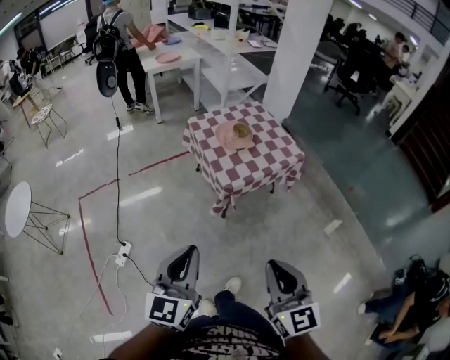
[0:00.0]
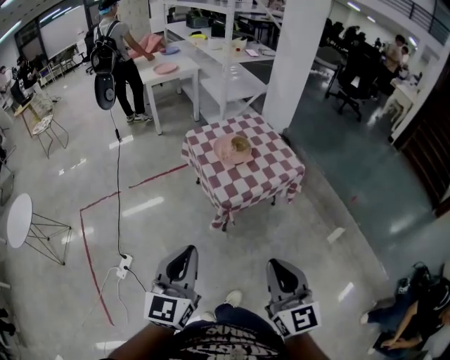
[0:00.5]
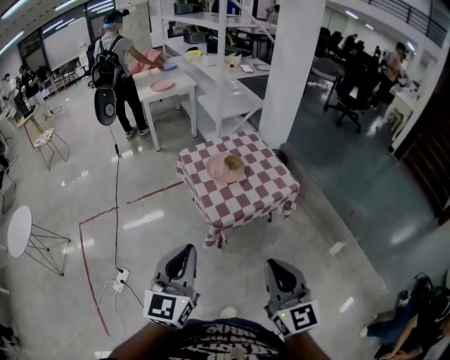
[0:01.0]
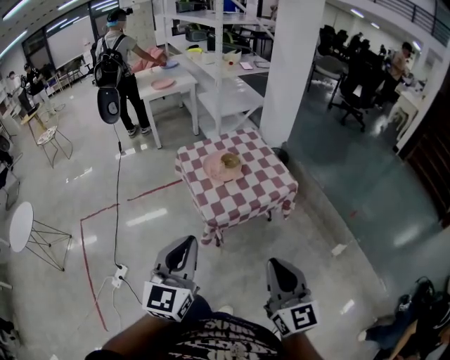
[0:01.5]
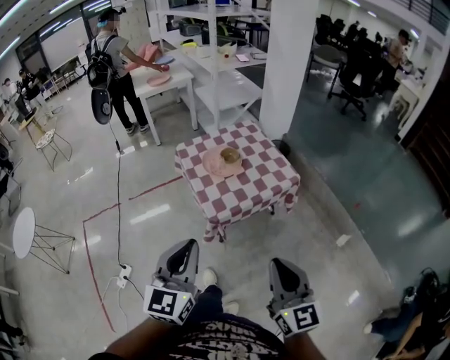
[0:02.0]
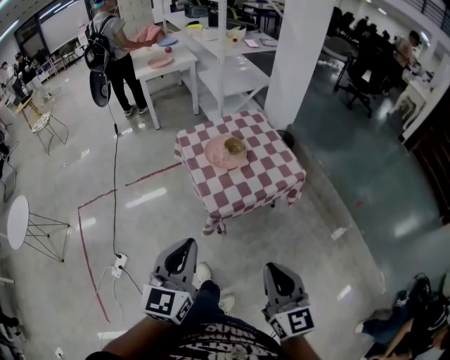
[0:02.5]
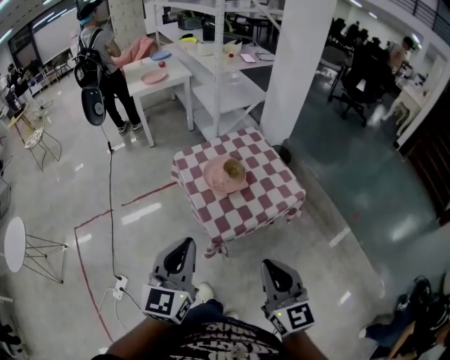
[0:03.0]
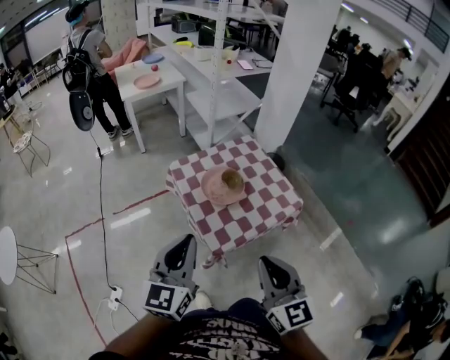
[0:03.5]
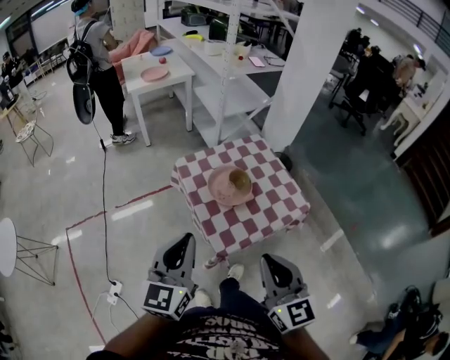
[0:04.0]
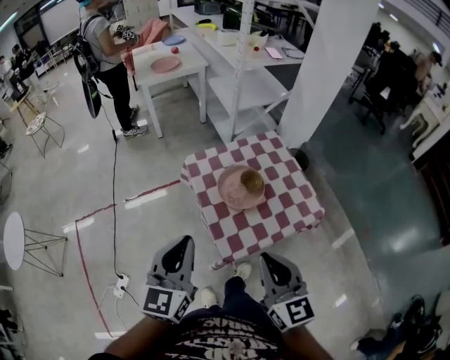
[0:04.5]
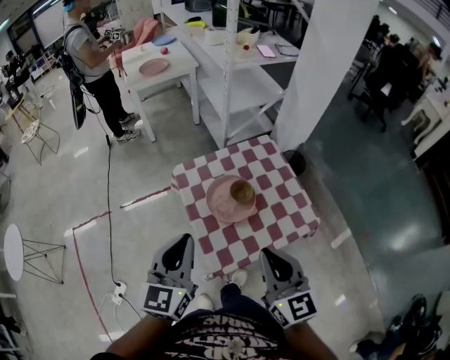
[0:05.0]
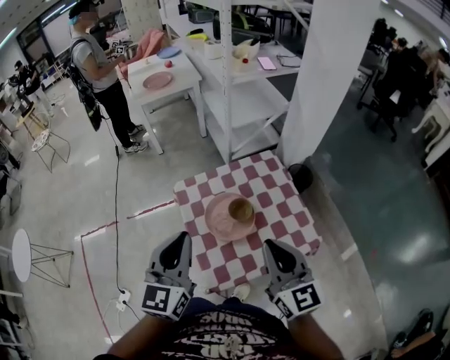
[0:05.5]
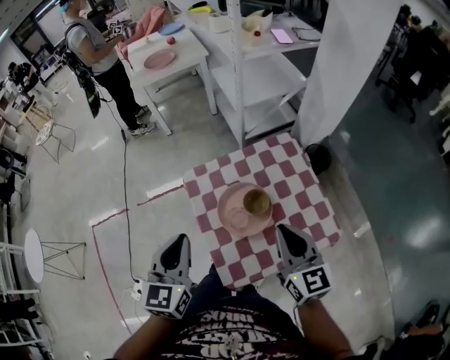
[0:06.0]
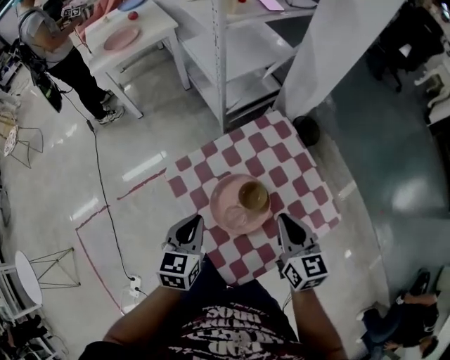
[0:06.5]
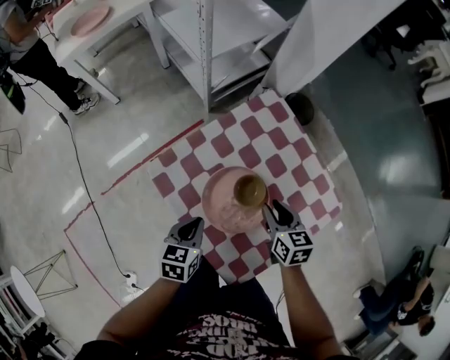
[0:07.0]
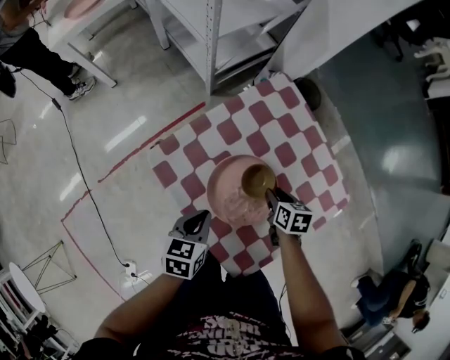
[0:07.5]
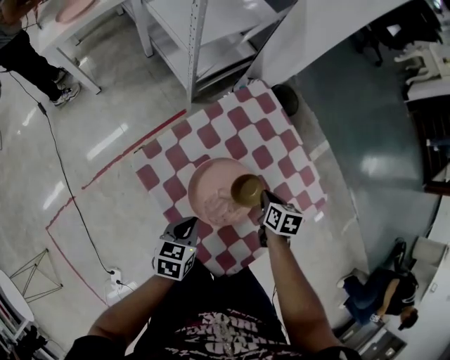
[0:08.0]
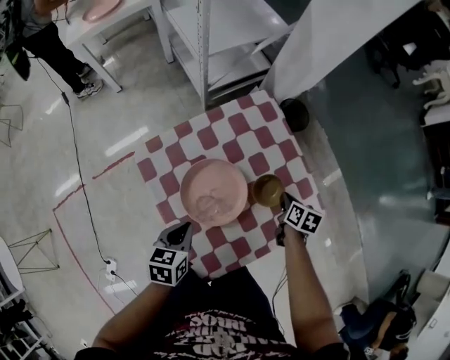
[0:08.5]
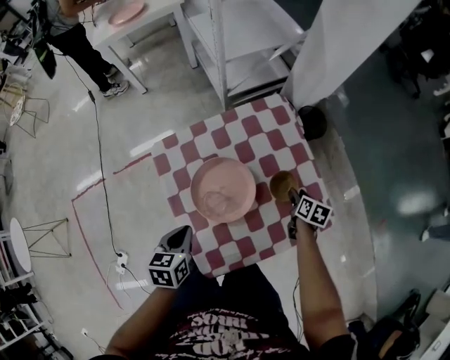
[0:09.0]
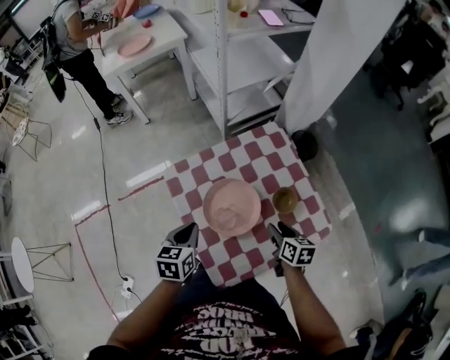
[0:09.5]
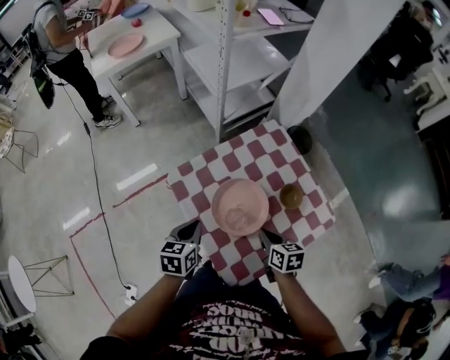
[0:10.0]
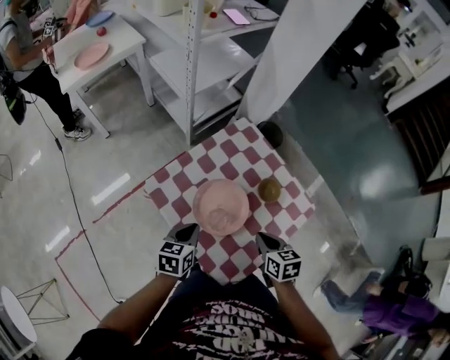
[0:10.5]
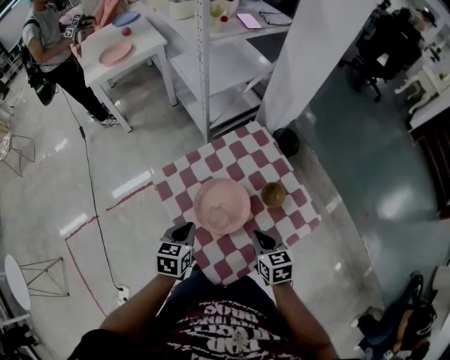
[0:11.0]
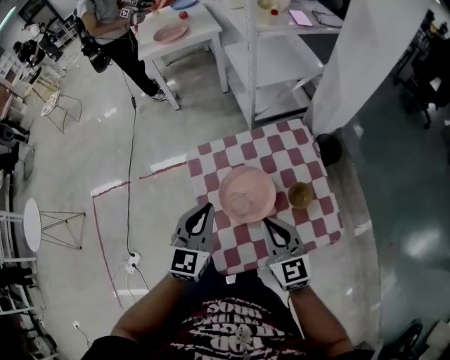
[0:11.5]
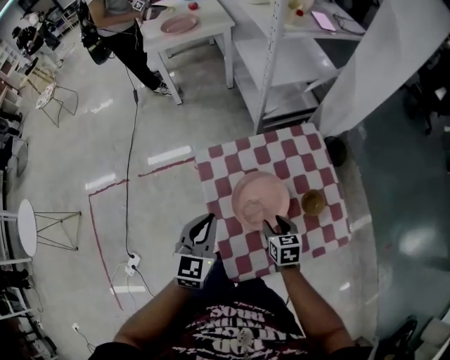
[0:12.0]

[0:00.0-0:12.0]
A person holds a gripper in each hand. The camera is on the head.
0:00.0 to 0:02.0: Both grippers travel together forward and to the right, about 20 cm.
0:02.0 to 0:04.0: The two grippers go about 25 cm forward and to the left.
0:04.0 to 0:06.0: The two grippers go about 25 cm forward. The left gripper rotates some 20 degrees.
0:06.0 to 0:08.0: Both grippers move downward, roughly 30 cm. The right gripper angles its fingers downward, by some 50 degrees, and opens and closes again, while the left gripper turns by roughly 50 degrees.
0:08.0 to 0:10.0: The left gripper heads upward, covering roughly 10 cm. Meanwhile the right gripper shifts by about 15 cm, rotates some 20 degrees, and opens, then closes again.
0:10.0 to 0:12.0: The left gripper moves upward, some 10 cm, and turns by roughly 30 degrees, while the right gripper reaches some 15 cm upward, then returns, changes its angle by approximately 20 degrees, and opens up.

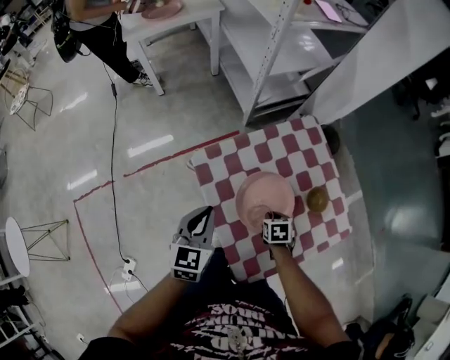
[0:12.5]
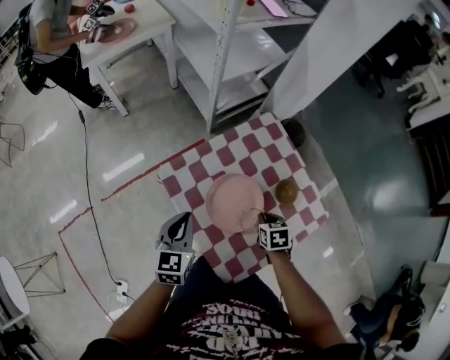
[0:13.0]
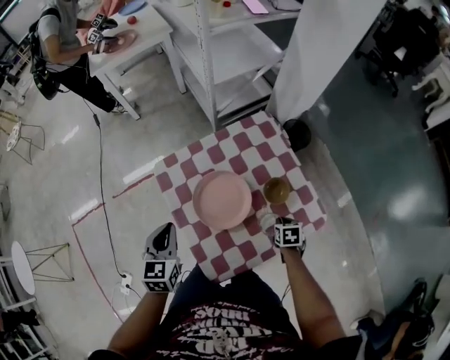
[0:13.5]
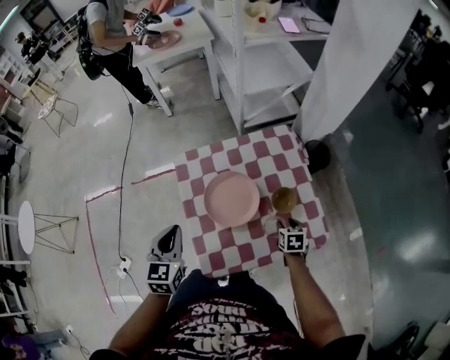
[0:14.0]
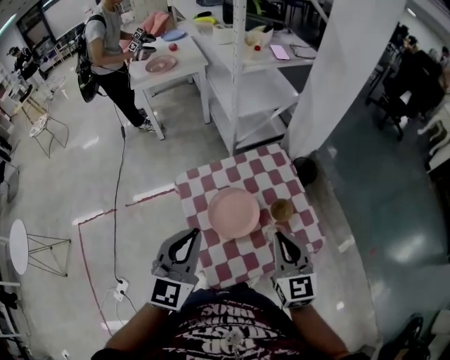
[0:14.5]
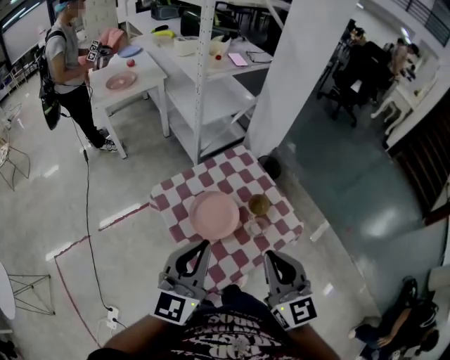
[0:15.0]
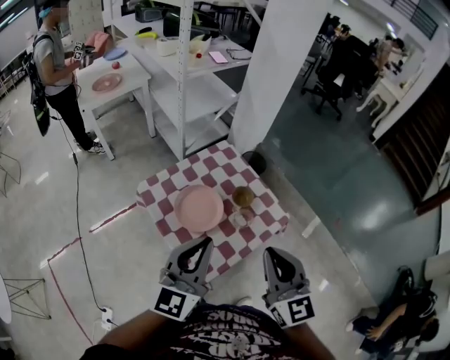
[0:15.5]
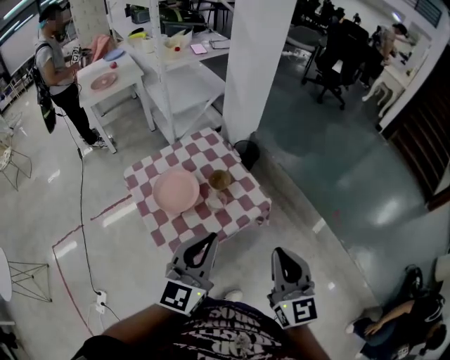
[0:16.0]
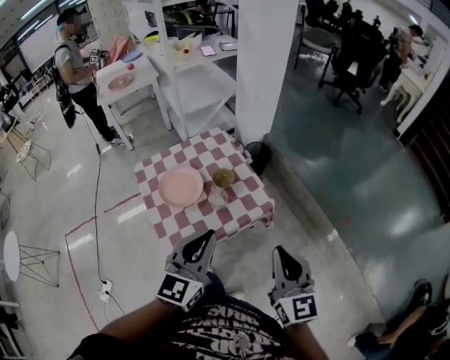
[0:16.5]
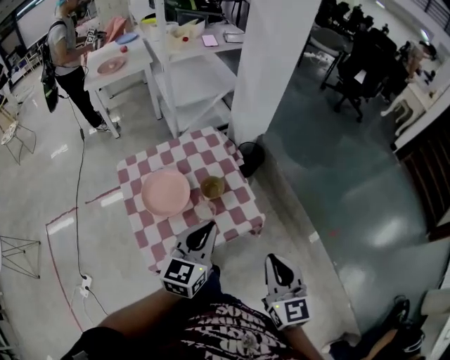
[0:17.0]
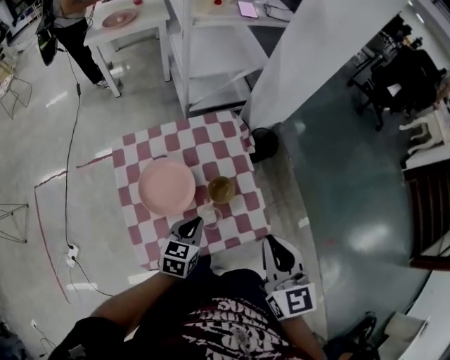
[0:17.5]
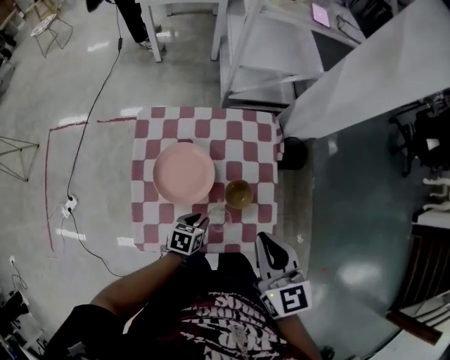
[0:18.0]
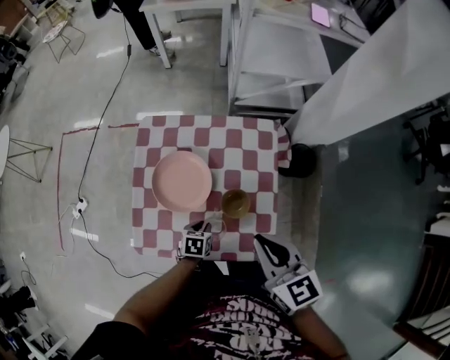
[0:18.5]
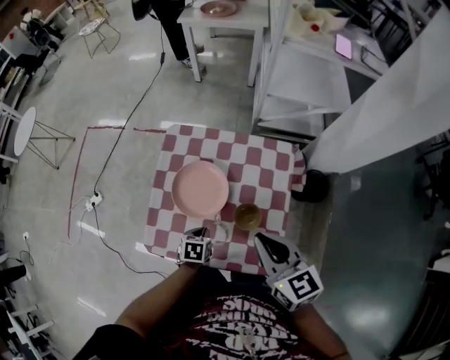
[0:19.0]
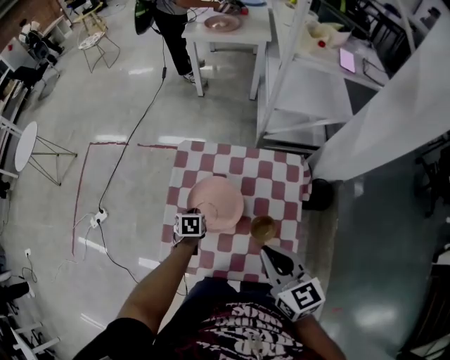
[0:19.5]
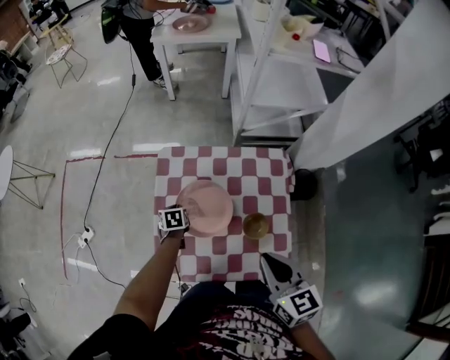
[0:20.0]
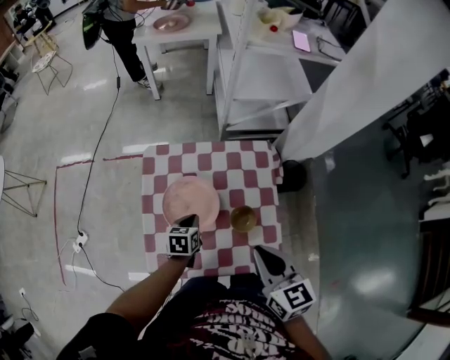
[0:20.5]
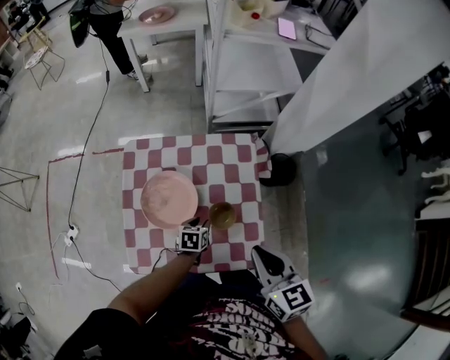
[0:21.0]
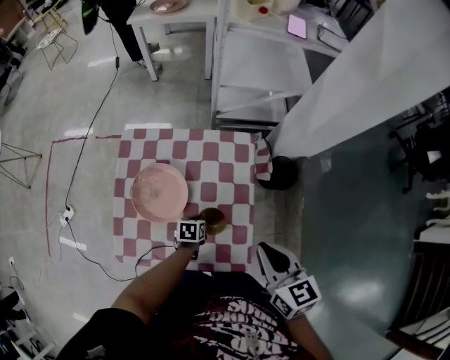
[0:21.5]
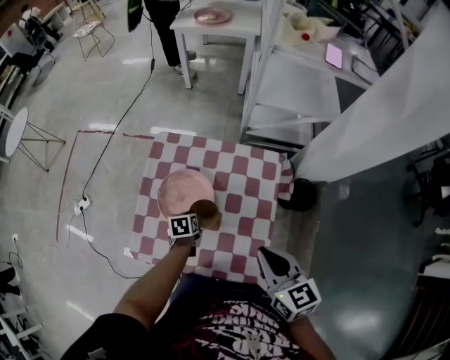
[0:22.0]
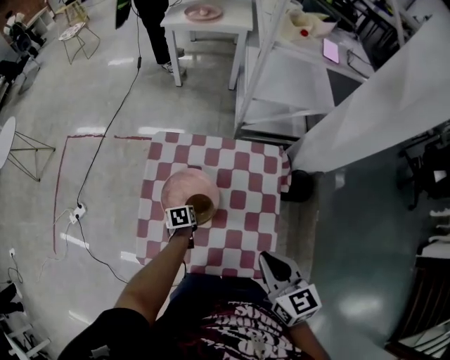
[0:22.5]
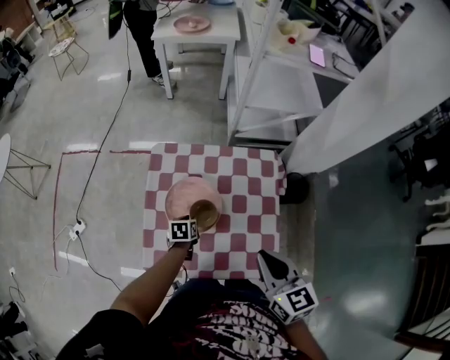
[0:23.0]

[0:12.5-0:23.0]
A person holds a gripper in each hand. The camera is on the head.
0:12.5 to 0:14.5: The right gripper goes up and down, some 40 cm each way, reversing 2 times, tips its fingers upward by approximately 60 degrees, and opens and closes again. The left gripper heads upward, backward and to the right, covering roughly 30 cm, and swivels some 20 degrees.
0:14.5 to 0:16.5: The grippers both shift to the right and backward by approximately 35 cm.
0:16.5 to 0:19.0: The right gripper shifts by about 40 cm, and swivels roughly 60 degrees. Meanwhile the left gripper goes about 40 cm downward, points its fingers about 60 degrees further downward, and opens and closes again.
0:19.0 to 0:21.0: The left gripper opens; the right gripper shifts by roughly 5 cm, and rotates roughly 20 degrees.
0:21.0 to 0:23.0: The right gripper goes approximately 5 cm to the left. Meanwhile the left gripper moves to the left, approximately 15 cm, and closes and opens again.

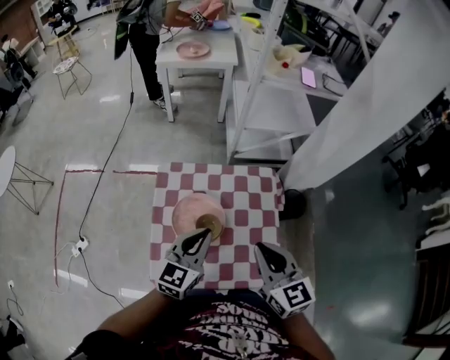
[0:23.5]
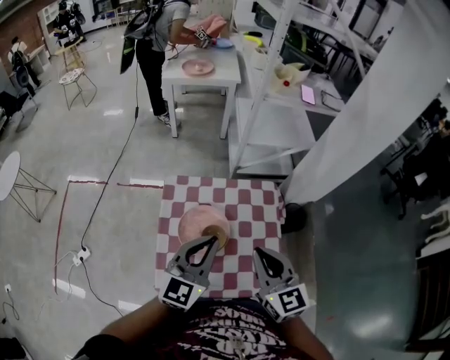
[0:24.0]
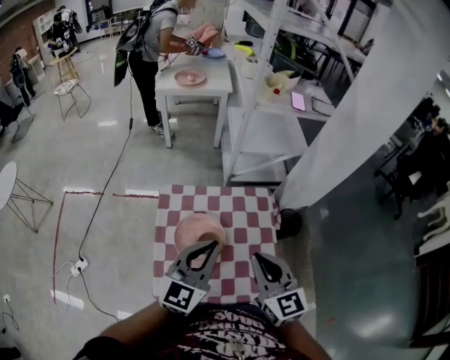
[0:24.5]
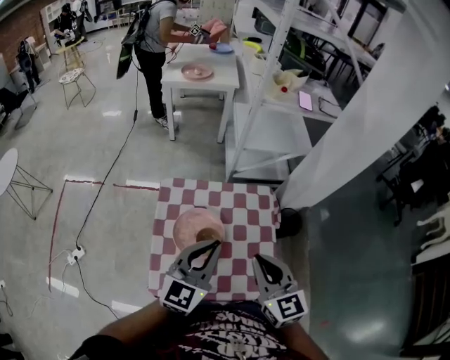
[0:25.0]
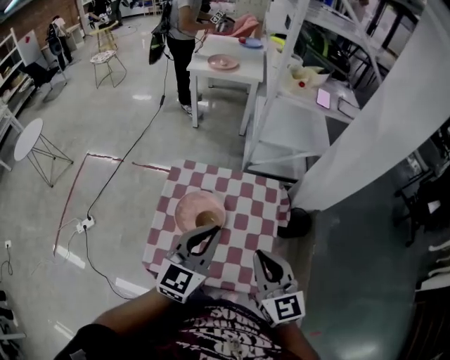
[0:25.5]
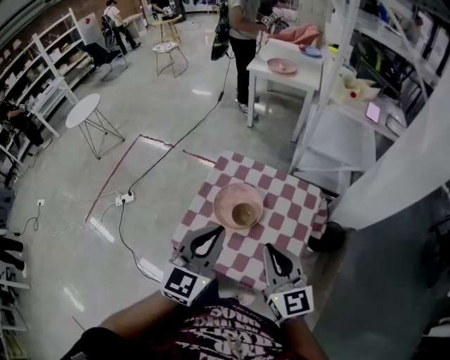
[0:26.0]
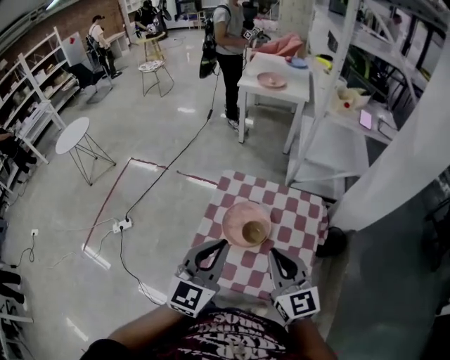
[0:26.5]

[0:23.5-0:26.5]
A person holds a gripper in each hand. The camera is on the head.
0:23.5 to 0:25.0: The left gripper travels upward by approximately 10 cm.
0:25.0 to 0:26.5: The left gripper shifts approximately 10 cm backward and to the left, and changes its angle by approximately 20 degrees. The right gripper heads to the left, covering approximately 5 cm, and swivels roughly 20 degrees.

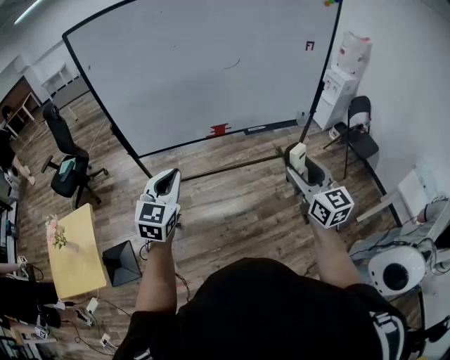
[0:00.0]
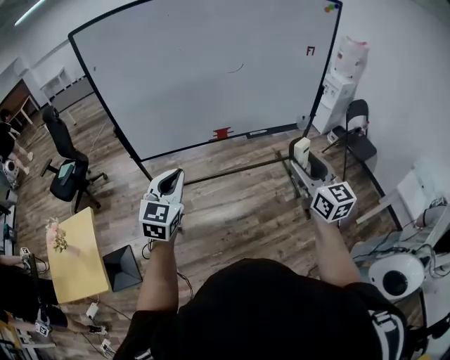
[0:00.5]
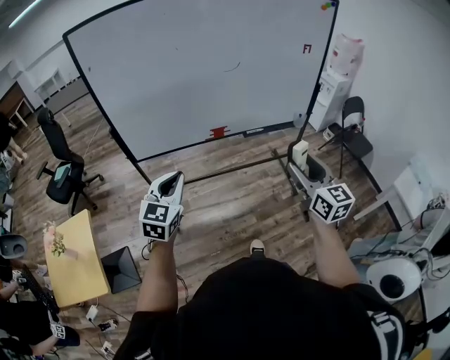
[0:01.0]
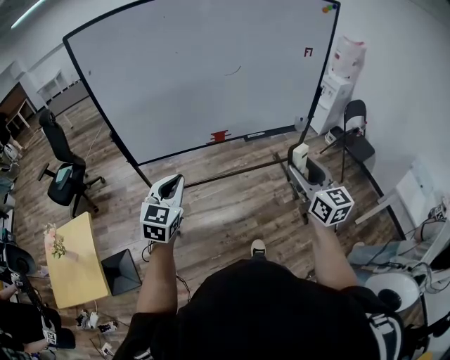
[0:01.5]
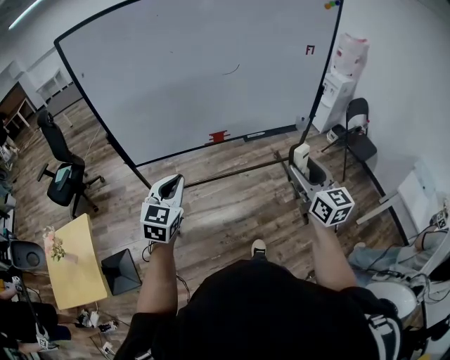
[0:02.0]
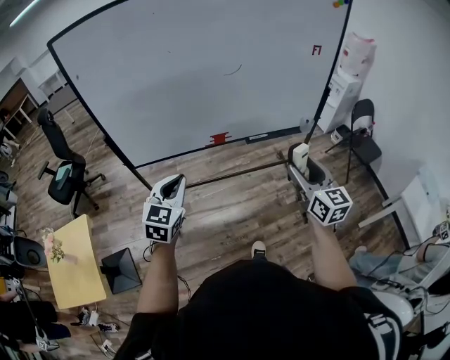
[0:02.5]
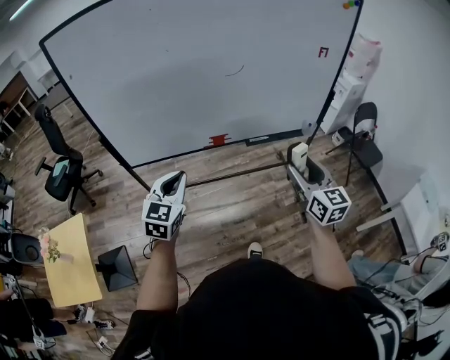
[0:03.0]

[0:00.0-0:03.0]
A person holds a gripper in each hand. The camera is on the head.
0:00.0 to 0:01.5: The grippers move only a little.
0:01.5 to 0:03.0: Both grippers travel together forward, some 10 cm.
